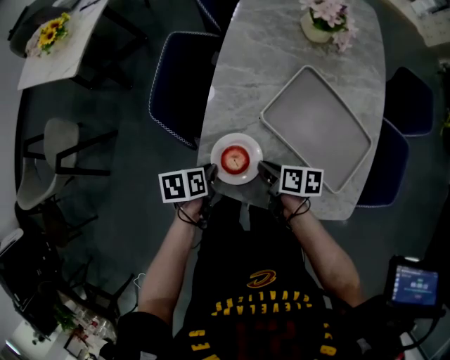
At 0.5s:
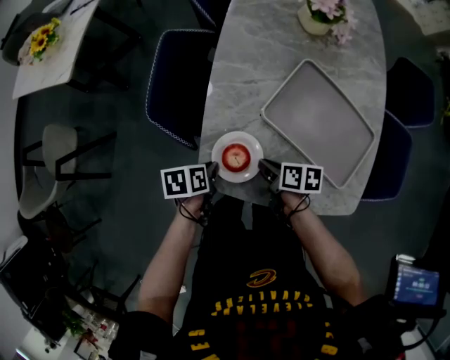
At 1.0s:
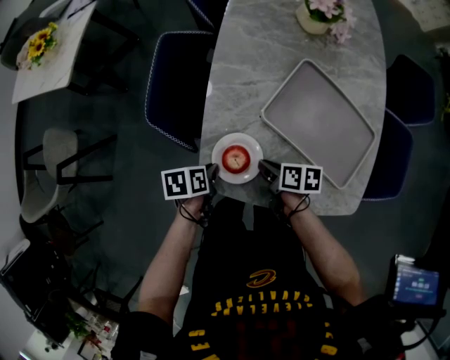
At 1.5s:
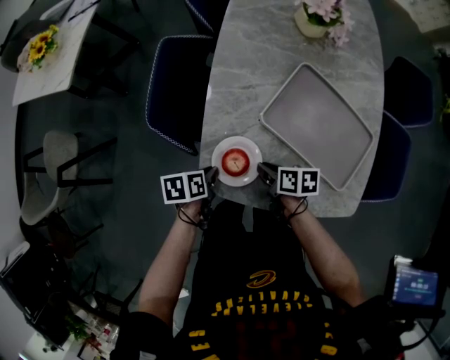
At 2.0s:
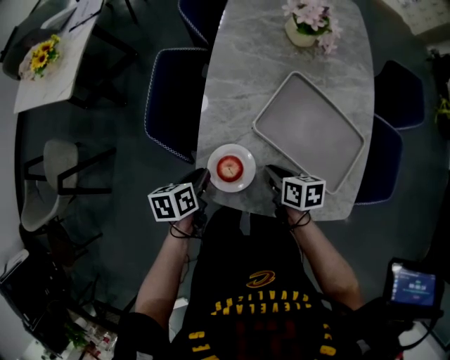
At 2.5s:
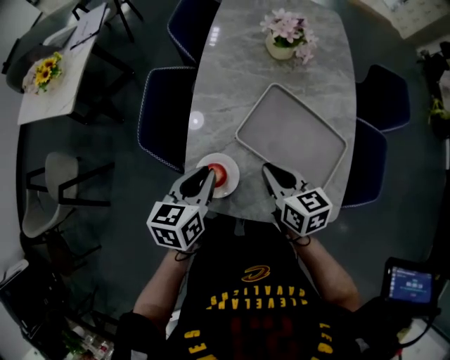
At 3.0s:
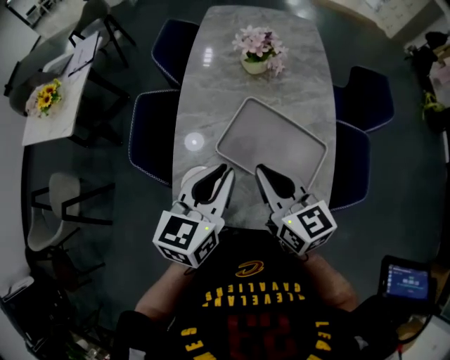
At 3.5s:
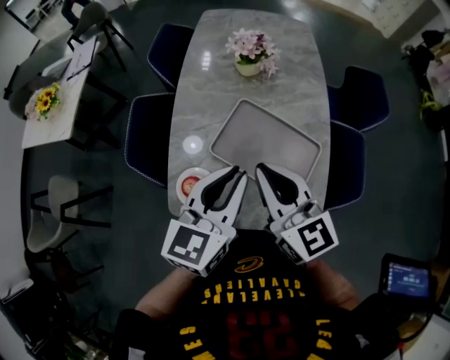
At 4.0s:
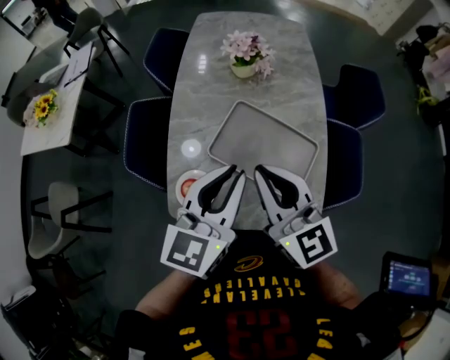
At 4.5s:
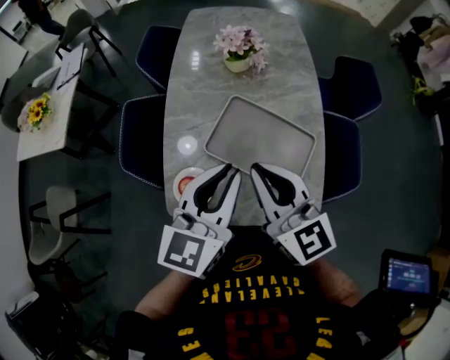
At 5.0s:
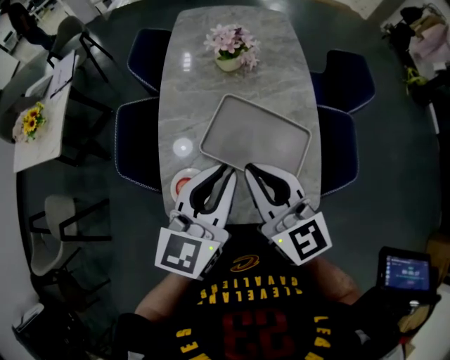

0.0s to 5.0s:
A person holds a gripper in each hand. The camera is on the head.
0.0s to 2.5s: Both grippers move upward, about 20 cm. The left gripper turns by roughly 40 degrees. Meanwhile the right gripper swivels roughly 40 degrees.
2.5s to 5.0s: The right gripper goes roughly 20 cm upward, and swivels roughly 40 degrees. The left gripper heads upward and to the right, covering roughly 25 cm, and changes its angle by some 30 degrees.

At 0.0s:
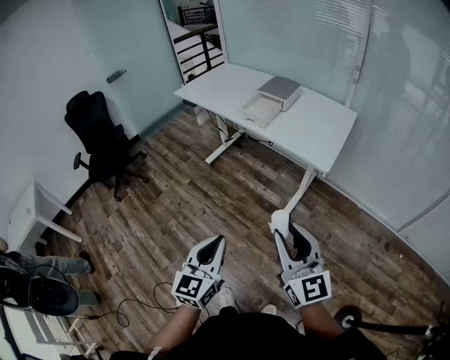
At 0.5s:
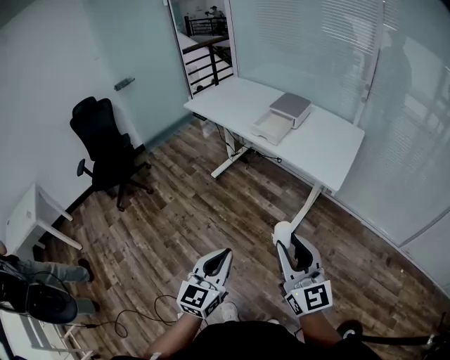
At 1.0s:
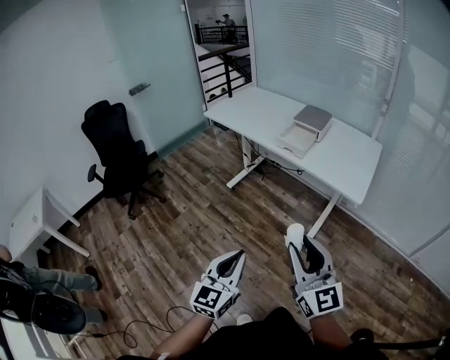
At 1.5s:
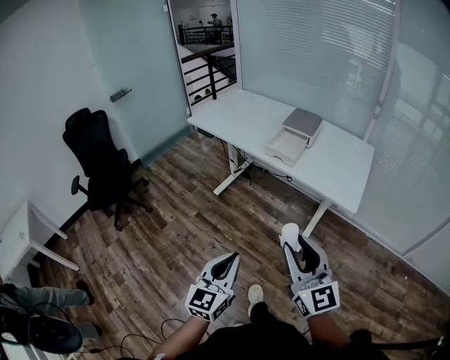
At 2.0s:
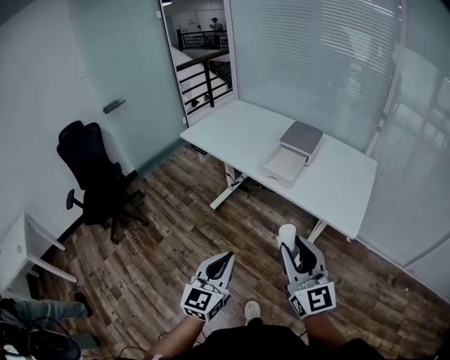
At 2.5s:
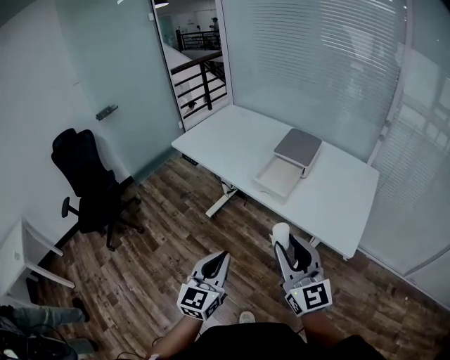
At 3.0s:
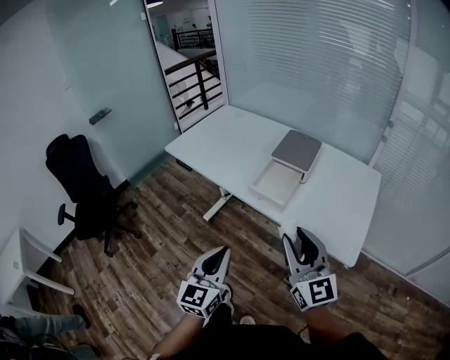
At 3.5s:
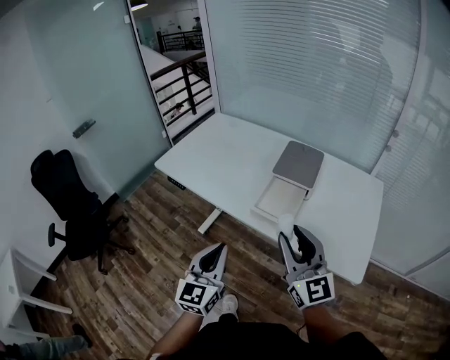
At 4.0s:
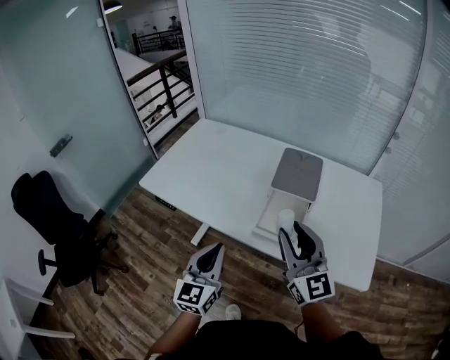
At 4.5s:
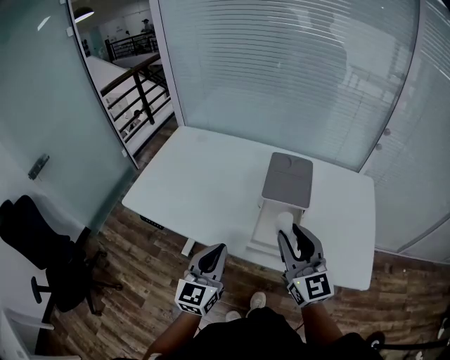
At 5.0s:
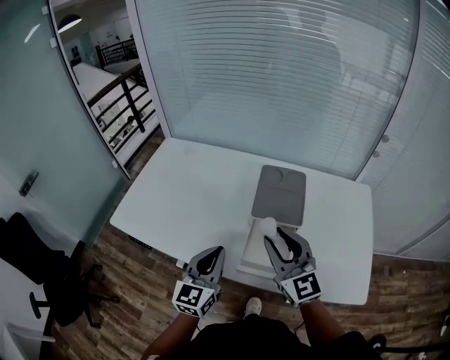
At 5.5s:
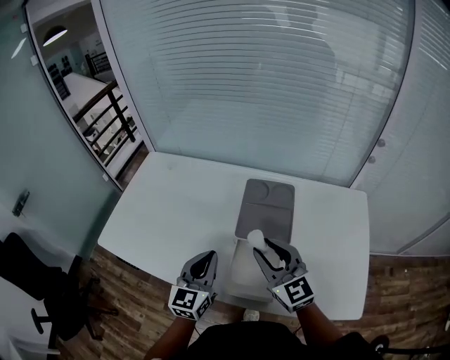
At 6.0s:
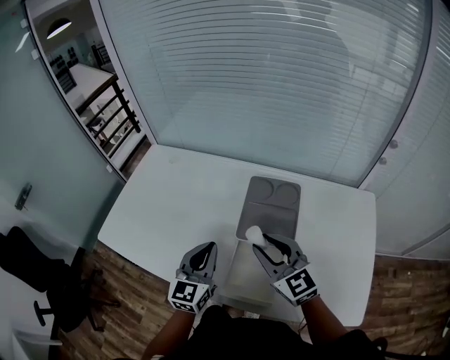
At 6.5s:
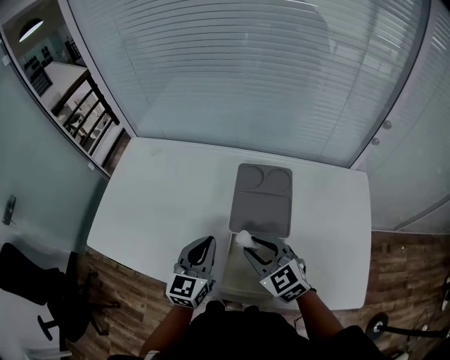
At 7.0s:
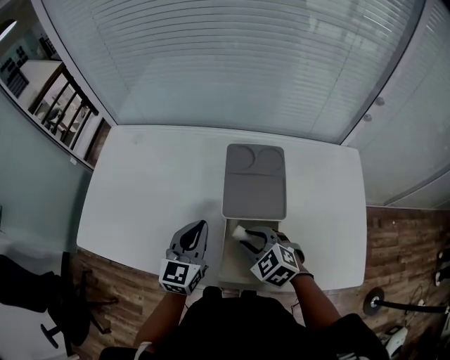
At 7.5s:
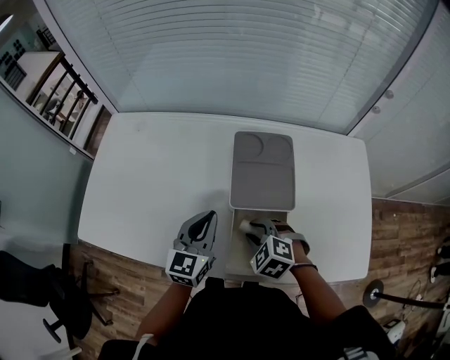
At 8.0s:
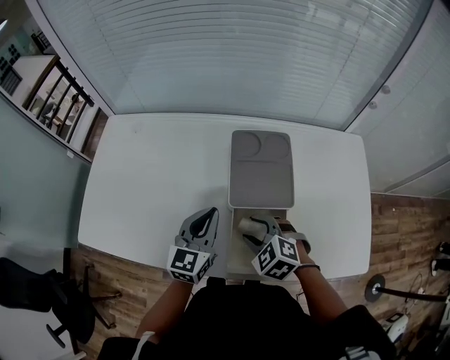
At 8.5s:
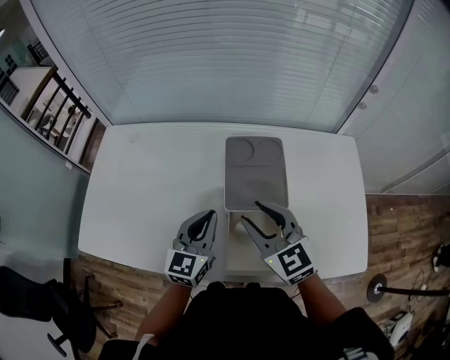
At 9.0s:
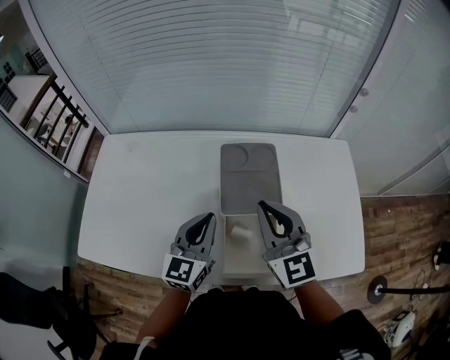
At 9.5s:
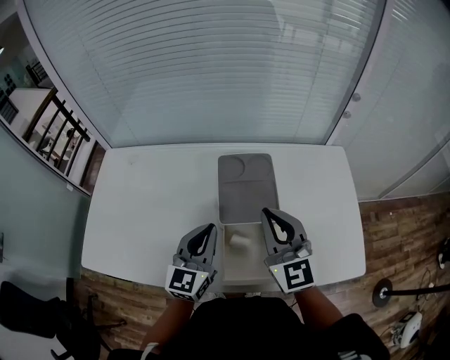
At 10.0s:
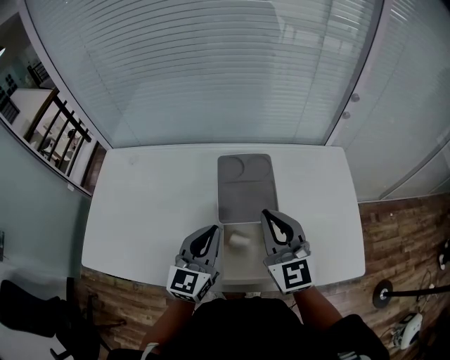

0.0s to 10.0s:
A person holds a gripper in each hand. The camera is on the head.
0.0s to 2.0s: Both grippers travel together forward and to the left, about 25 cm.
2.0s to 4.0s: Both grippers move forward, roughly 35 cm.
4.0s to 6.0s: The left gripper goes some 25 cm forward; the right gripper is displaced forward and downward by some 20 cm, and turns by approximately 20 degrees.
6.0s to 8.0s: The right gripper moves downward, approximately 15 cm, and tips its fingers downward by some 40 degrees; the left gripper shifts by about 5 cm.
8.0s to 10.0s: The right gripper is displaced upward by roughly 20 cm, points its fingers roughly 50 degrees further upward, and closes, while the left gripper moves upward, about 5 cm.

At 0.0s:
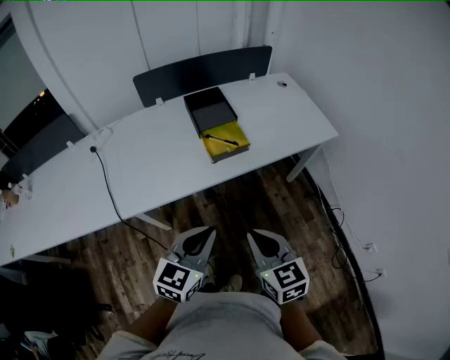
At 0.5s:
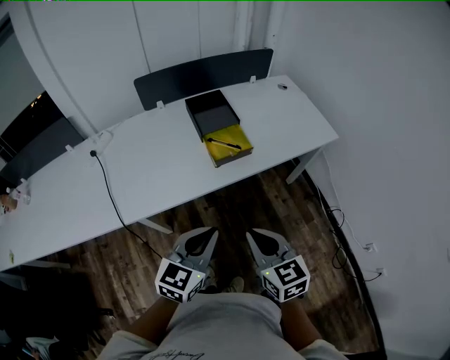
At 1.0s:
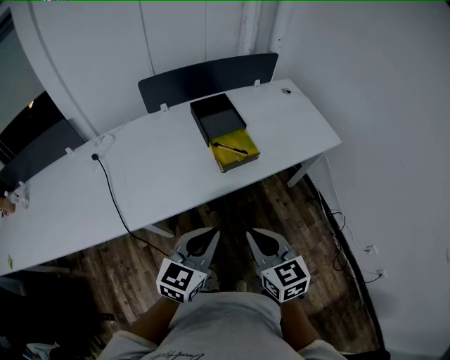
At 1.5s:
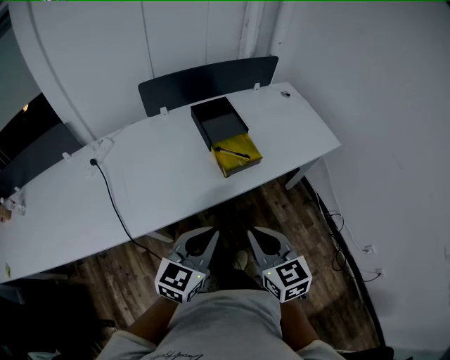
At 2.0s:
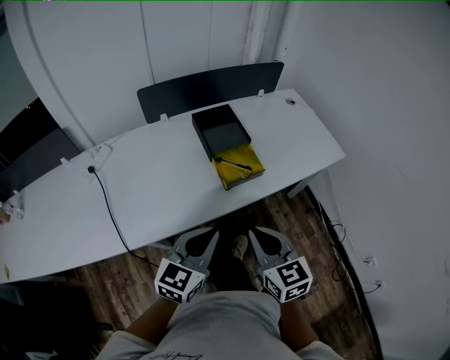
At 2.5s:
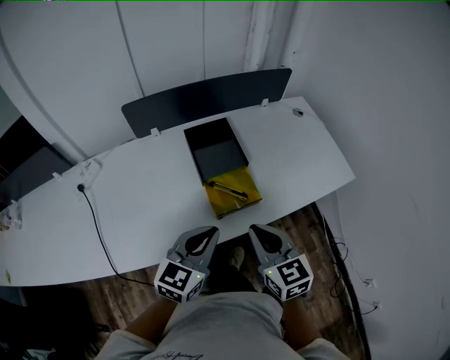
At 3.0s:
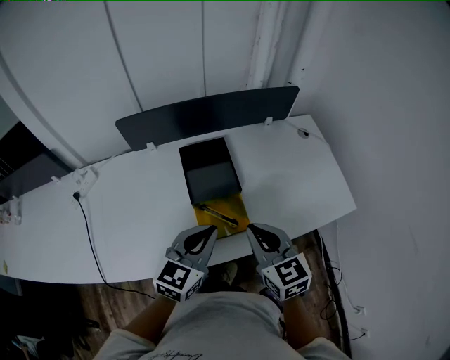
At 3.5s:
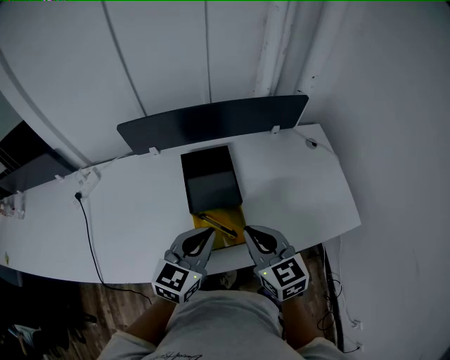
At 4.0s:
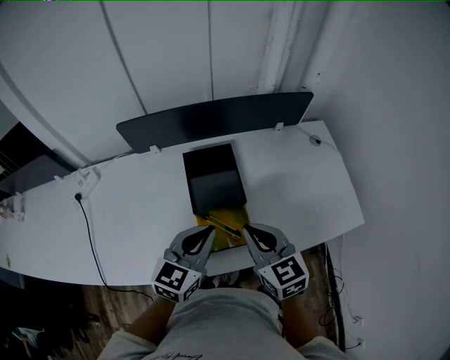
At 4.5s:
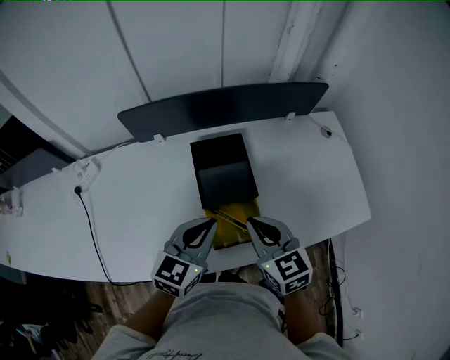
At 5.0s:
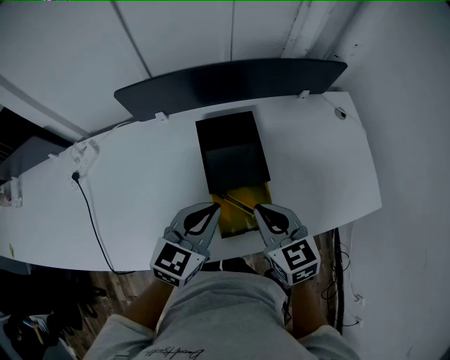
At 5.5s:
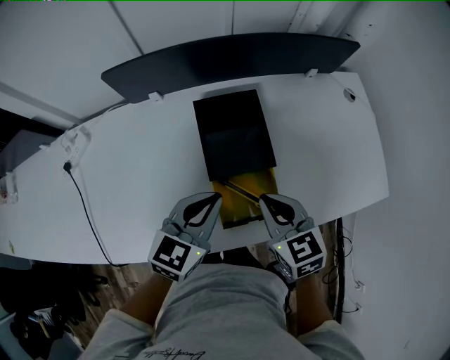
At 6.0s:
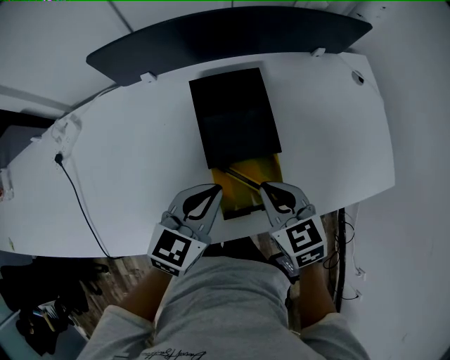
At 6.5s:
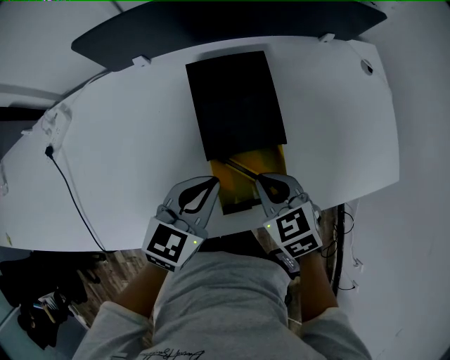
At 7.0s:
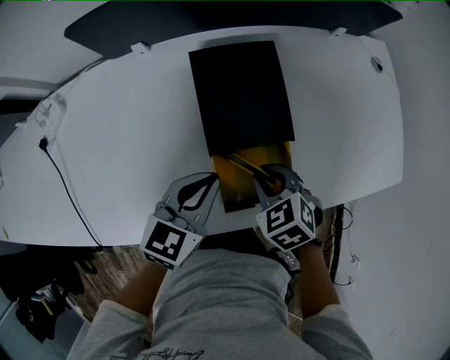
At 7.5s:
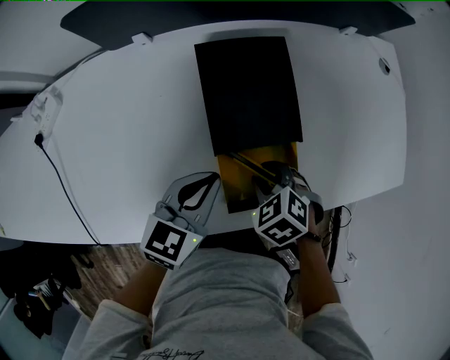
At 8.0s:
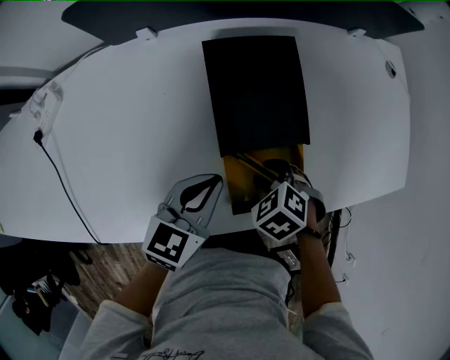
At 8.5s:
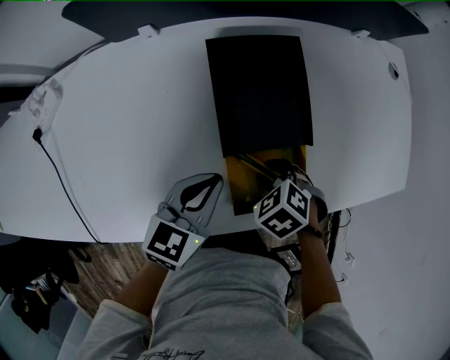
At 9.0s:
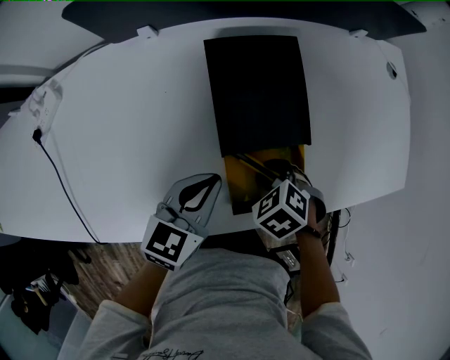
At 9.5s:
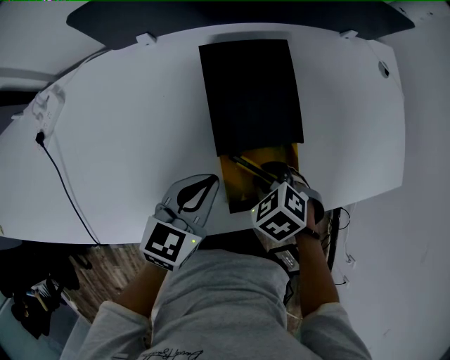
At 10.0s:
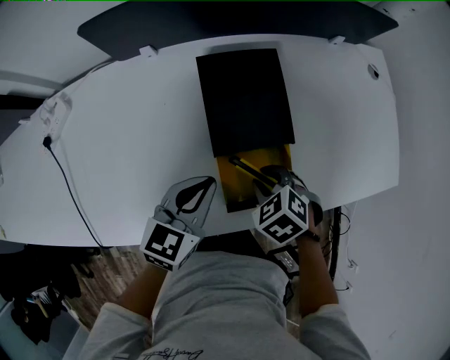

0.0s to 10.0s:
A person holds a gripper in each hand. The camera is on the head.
0.0s to 2.0s: The two grippers go some 15 cm forward and to the left.
2.0s to 4.0s: Both grippers travel together forward, some 30 cm.
4.0s to 6.0s: The two grippers go some 10 cm downward.
6.0s to 8.0s: The right gripper travels downward by approximately 15 cm, tilts its fingers roughly 40 degrees downward, and opens up. Meanwhile the left gripper is displaced downward by roughly 5 cm.
8.0s to 10.0s: The grippers move only a little.

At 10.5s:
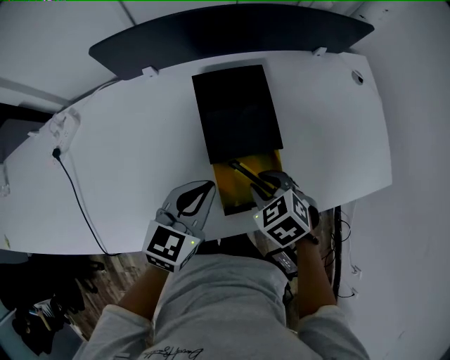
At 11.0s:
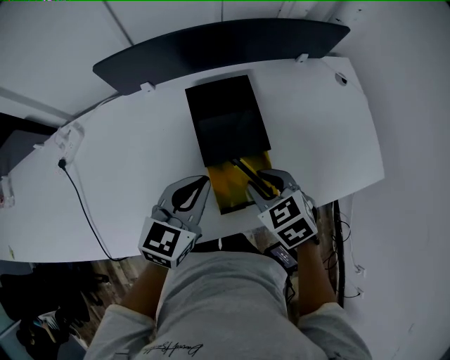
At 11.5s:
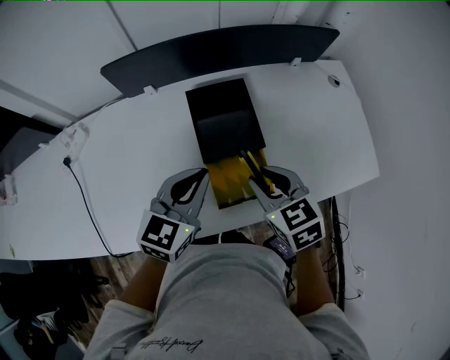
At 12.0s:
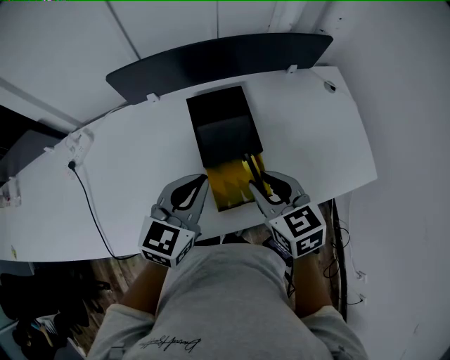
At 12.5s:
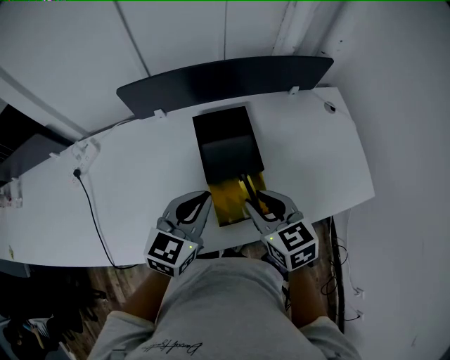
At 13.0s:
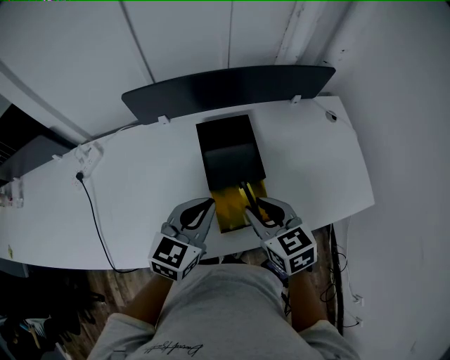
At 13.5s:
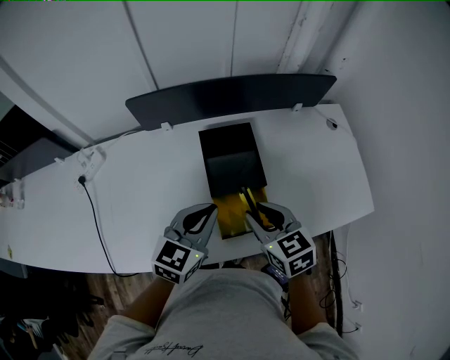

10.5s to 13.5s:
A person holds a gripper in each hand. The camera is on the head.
10.5s to 12.0s: Both grippers move upward, approximately 15 cm. The right gripper tilts its fingers approximately 30 degrees upward.
12.0s to 13.5s: There are only small adjustments of the grippers.
